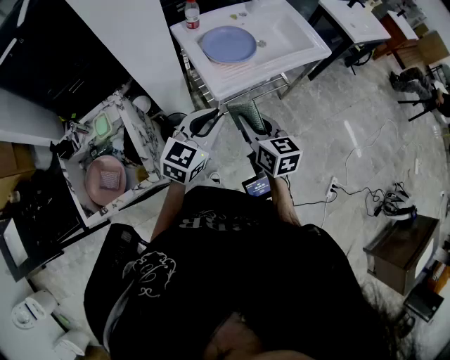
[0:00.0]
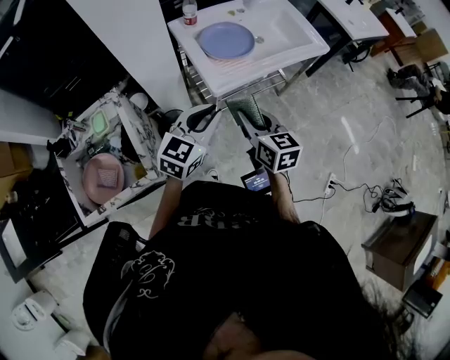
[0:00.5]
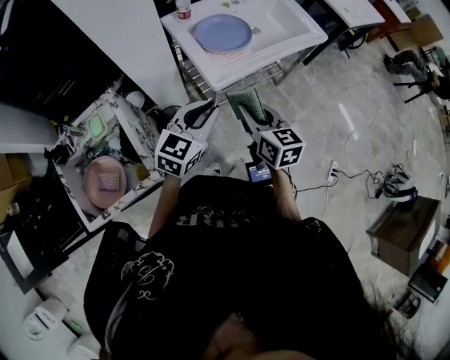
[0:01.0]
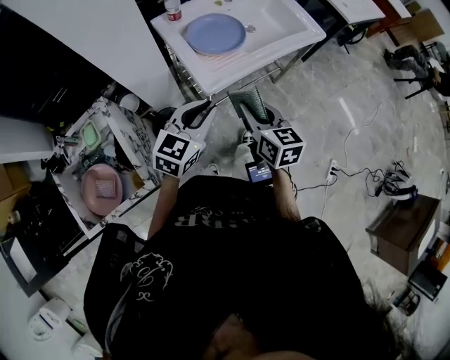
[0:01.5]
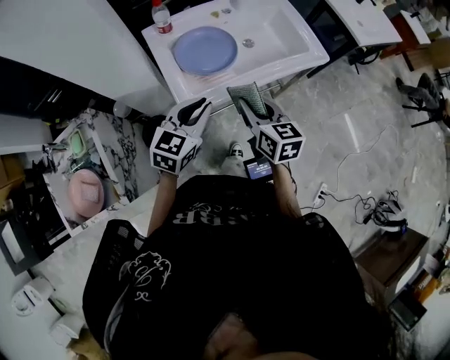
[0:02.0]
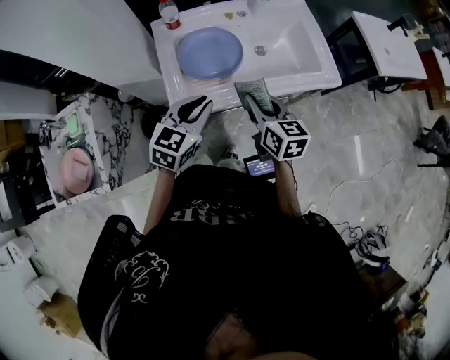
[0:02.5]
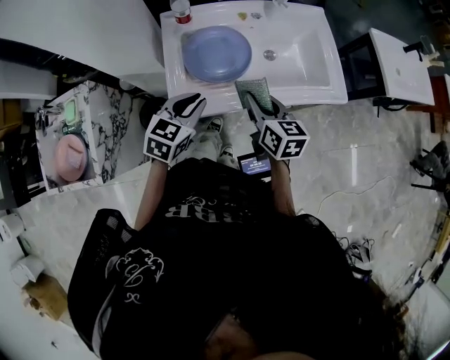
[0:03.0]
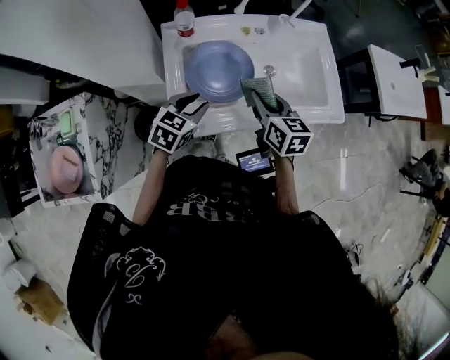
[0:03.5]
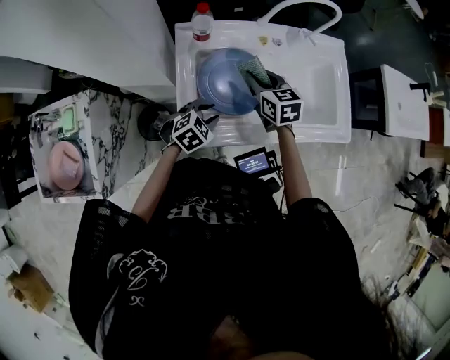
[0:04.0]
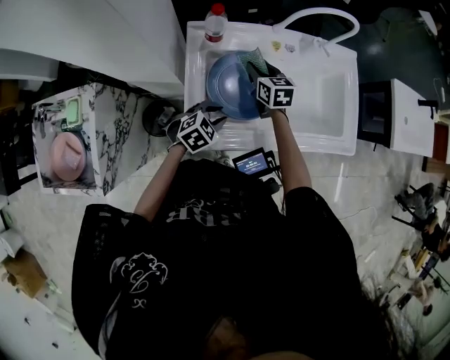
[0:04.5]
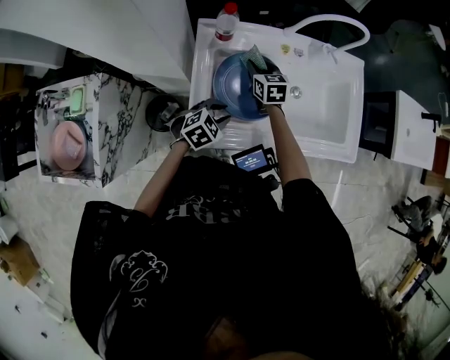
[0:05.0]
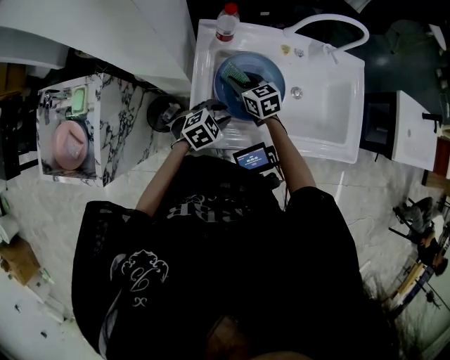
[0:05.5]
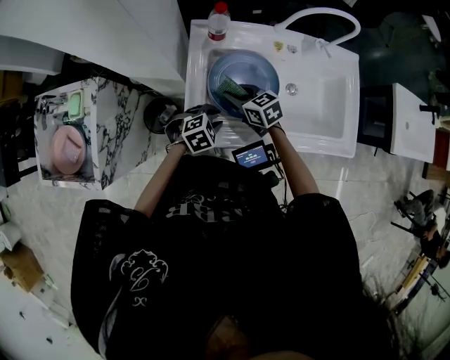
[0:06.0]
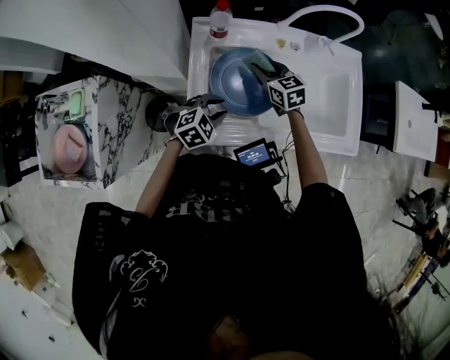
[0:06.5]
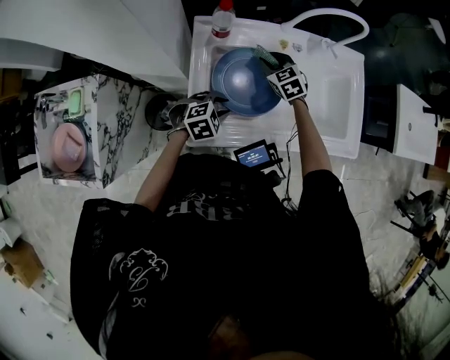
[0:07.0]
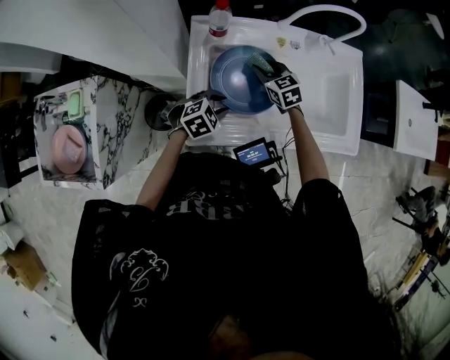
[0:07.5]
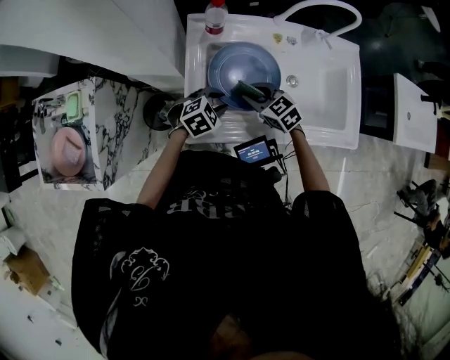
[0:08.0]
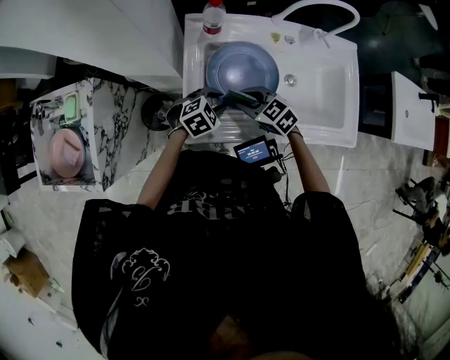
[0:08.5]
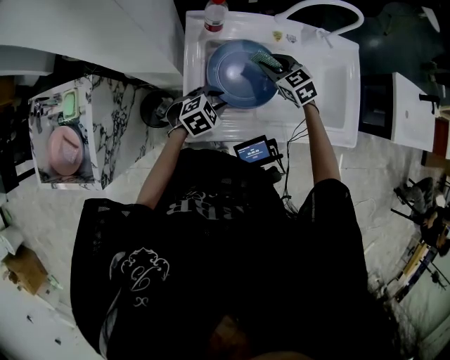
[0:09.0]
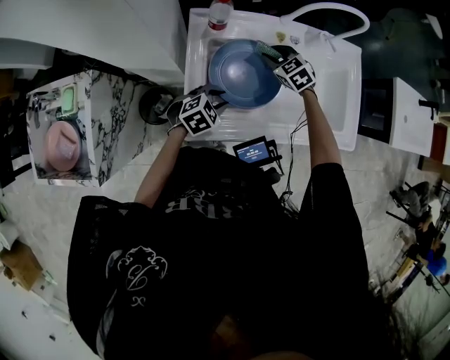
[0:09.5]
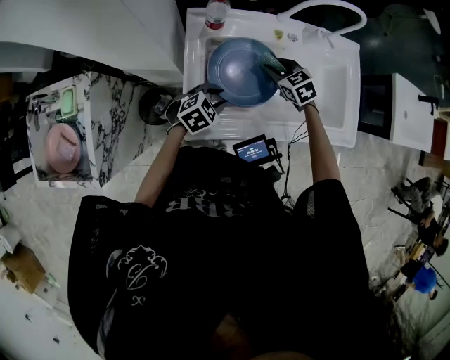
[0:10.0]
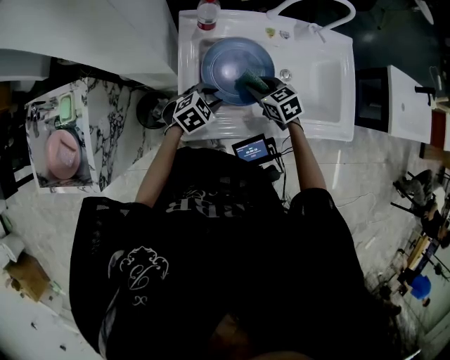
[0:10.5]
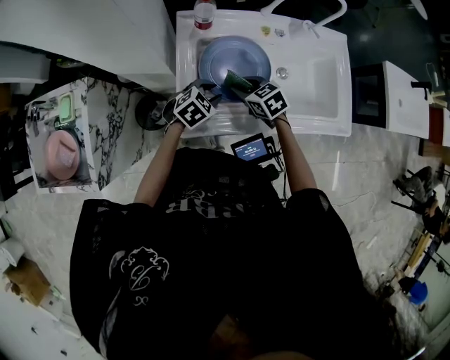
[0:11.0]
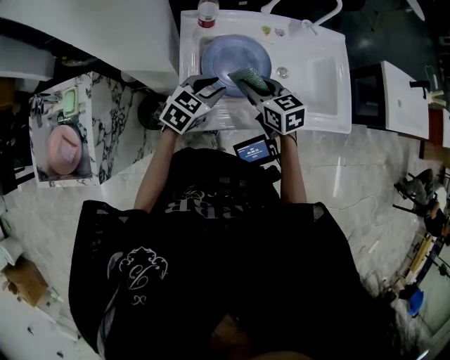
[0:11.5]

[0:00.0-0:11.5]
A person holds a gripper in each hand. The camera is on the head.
0:00.0 to 0:02.0: Both grippers move forward and to the right, about 20 cm.
0:02.0 to 0:04.0: The left gripper is displaced downward and forward by approximately 25 cm, and angles its fingers downward, by approximately 30 degrees. Meanwhile the right gripper heads forward, covering about 30 cm, and turns by roughly 30 degrees.
0:04.0 to 0:06.0: The right gripper shifts approximately 15 cm downward, to the left and backward, and changes its angle by approximately 30 degrees.
0:06.0 to 0:07.5: The right gripper heads forward and to the right, covering about 10 cm.
0:09.5 to 0:11.5: The right gripper is displaced backward and upward by roughly 20 cm, and changes its angle by some 30 degrees. The left gripper goes about 10 cm upward, and rotates roughly 20 degrees.

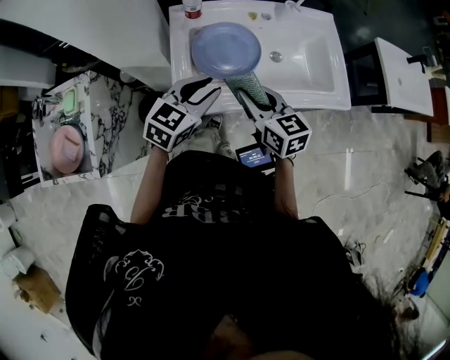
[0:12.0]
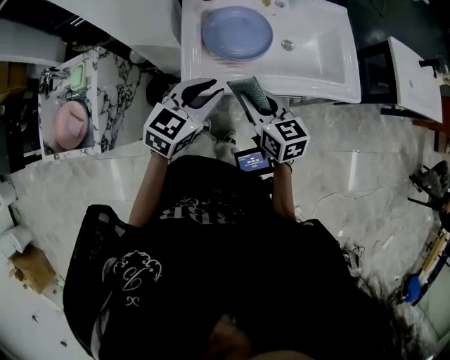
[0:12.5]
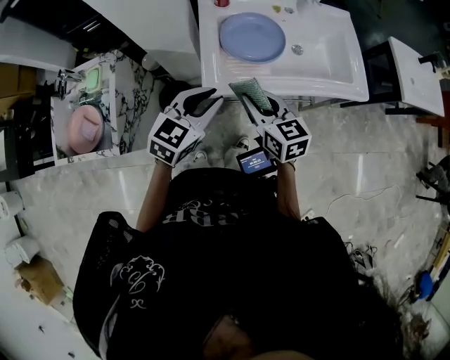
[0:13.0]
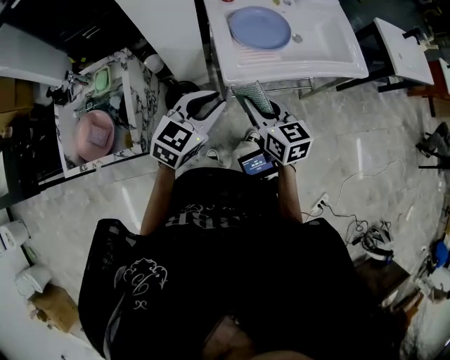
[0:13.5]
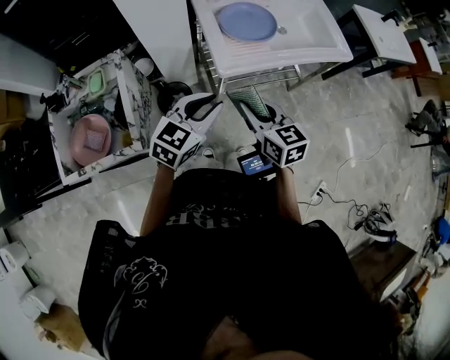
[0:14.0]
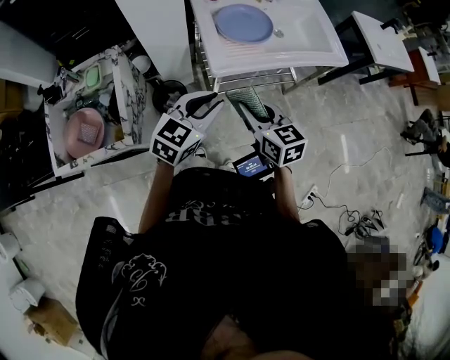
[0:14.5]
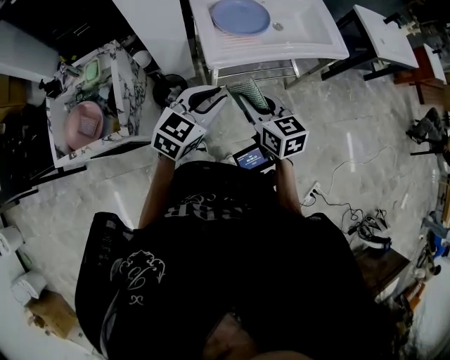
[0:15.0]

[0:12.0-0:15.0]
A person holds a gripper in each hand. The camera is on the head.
0:12.0 to 0:13.5: Both grippers move backward and to the left, some 25 cm.
0:13.5 to 0:15.0: The right gripper goes approximately 5 cm backward, while the left gripper goes roughly 10 cm backward and to the right.

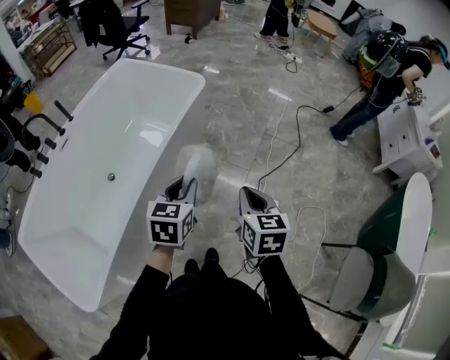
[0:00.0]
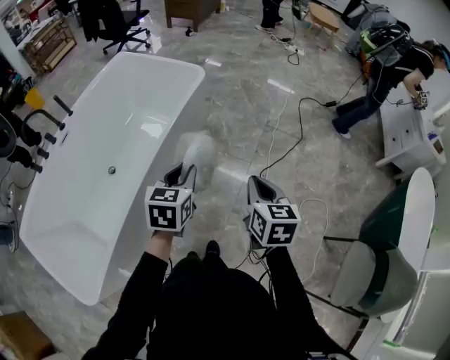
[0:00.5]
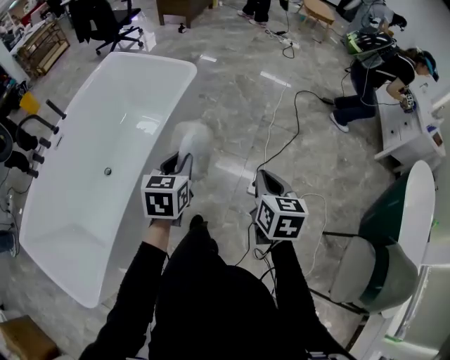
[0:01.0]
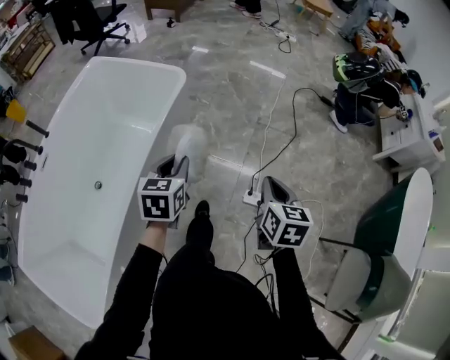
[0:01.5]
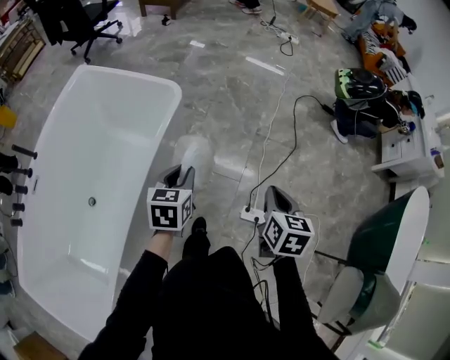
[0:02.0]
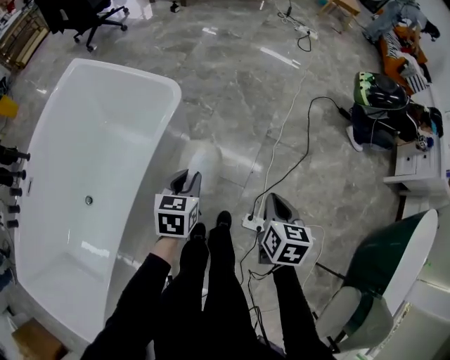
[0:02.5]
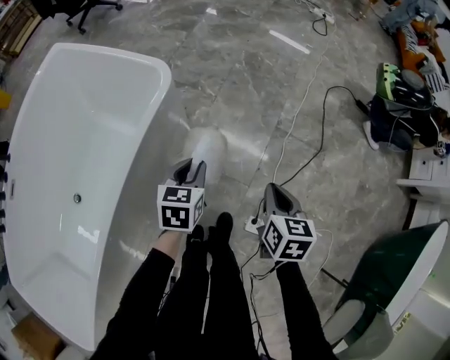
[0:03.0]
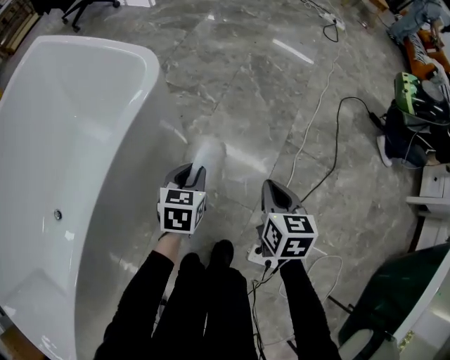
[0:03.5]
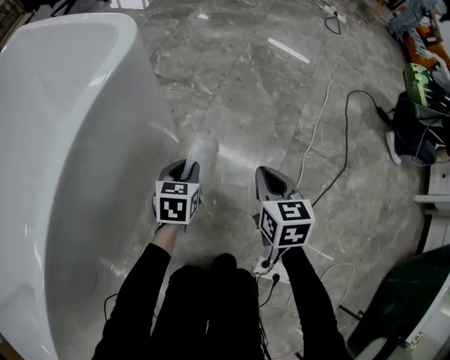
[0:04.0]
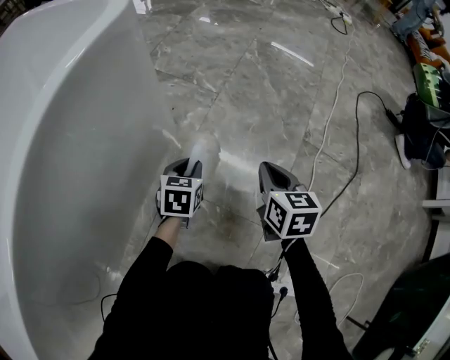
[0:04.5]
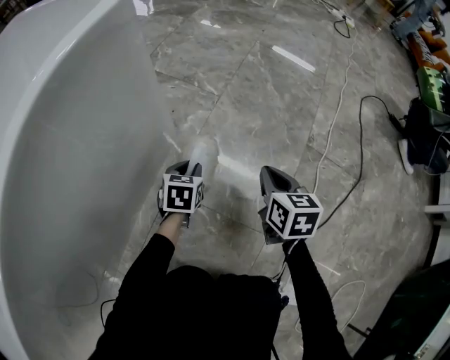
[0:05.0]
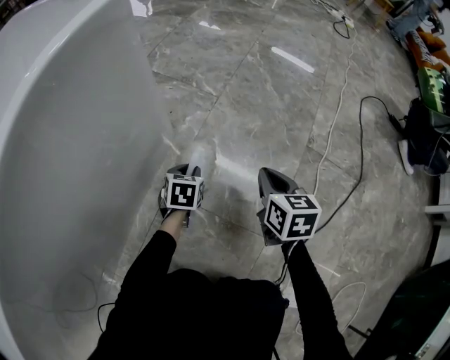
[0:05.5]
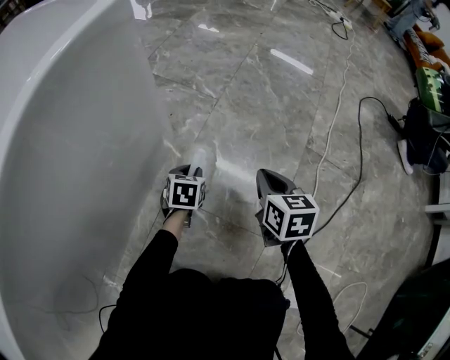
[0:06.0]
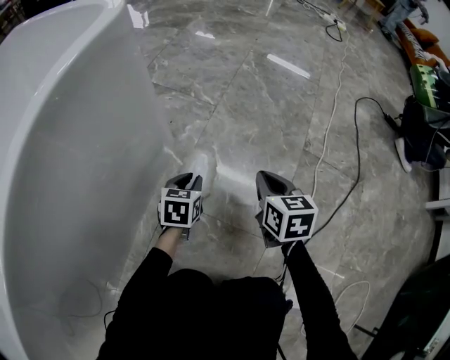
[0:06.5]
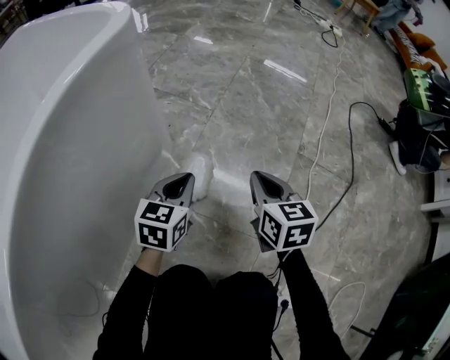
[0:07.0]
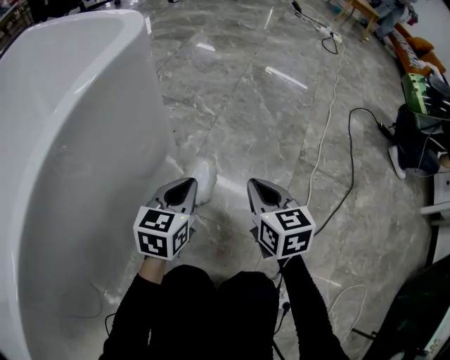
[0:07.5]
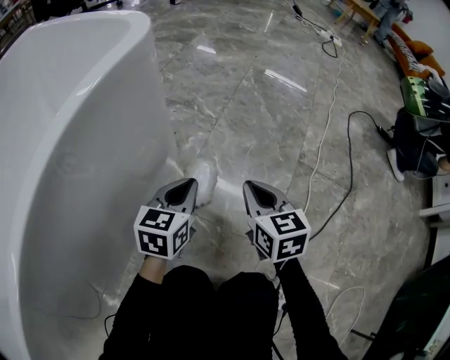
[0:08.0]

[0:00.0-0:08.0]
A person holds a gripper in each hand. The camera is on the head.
0:00.0 to 0:02.0: The left gripper goes some 30 cm forward; the right gripper goes about 30 cm forward and to the right.
0:02.0 to 0:04.0: The grippers both shift downward and forward by approximately 60 cm. The right gripper rotates about 20 degrees.
0:04.0 to 0:06.0: The right gripper is displaced downward by about 10 cm. Meanwhile the left gripper heads downward, covering approximately 20 cm.
0:06.0 to 0:08.0: The left gripper shifts approximately 20 cm upward, and turns by about 30 degrees; the right gripper goes roughly 10 cm upward and to the left.

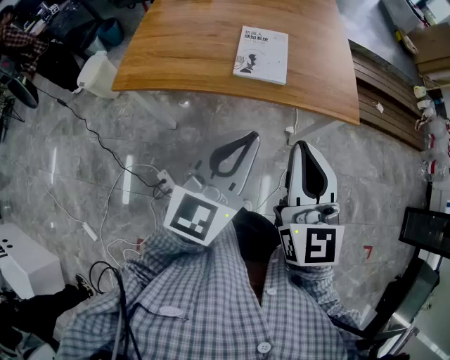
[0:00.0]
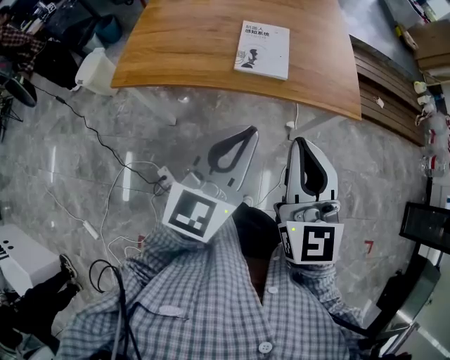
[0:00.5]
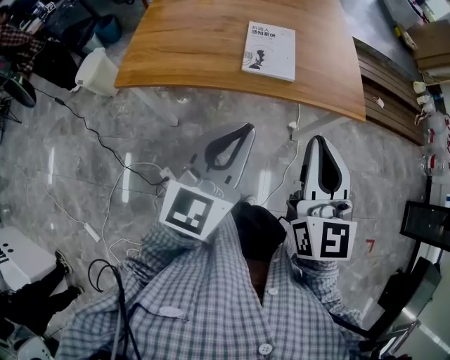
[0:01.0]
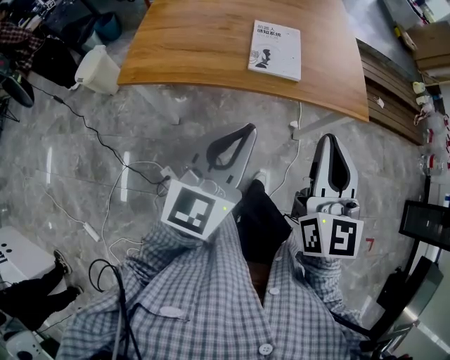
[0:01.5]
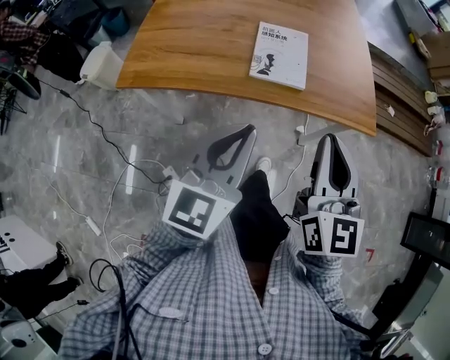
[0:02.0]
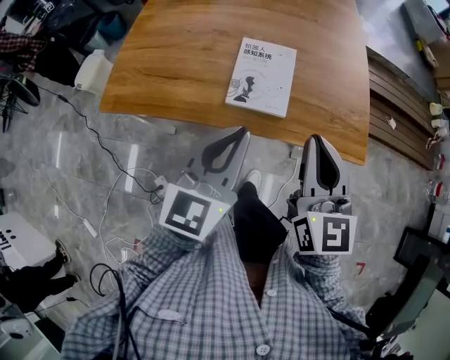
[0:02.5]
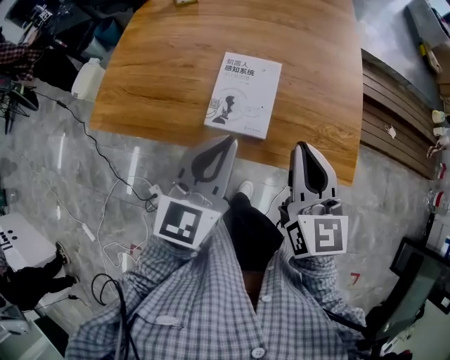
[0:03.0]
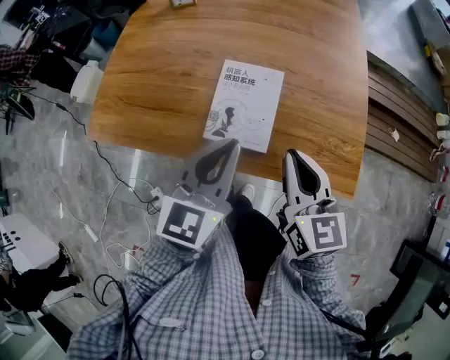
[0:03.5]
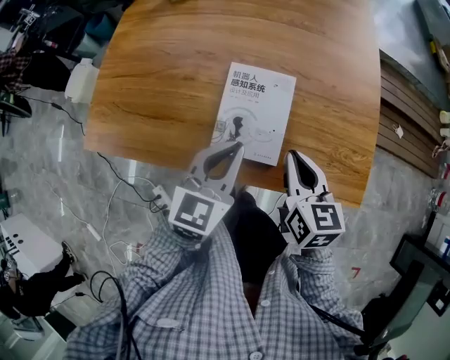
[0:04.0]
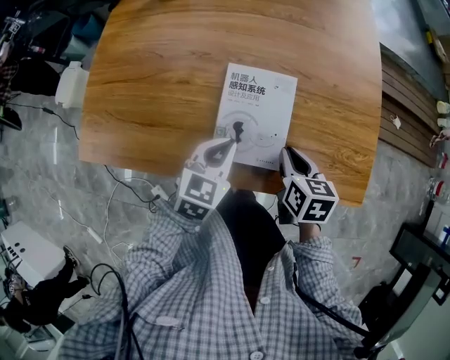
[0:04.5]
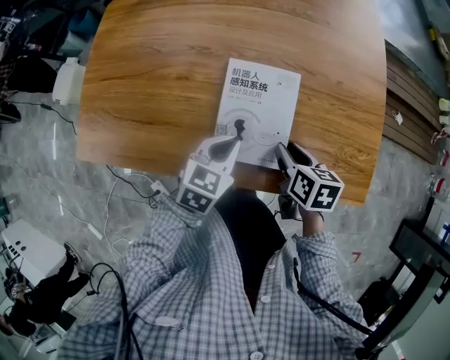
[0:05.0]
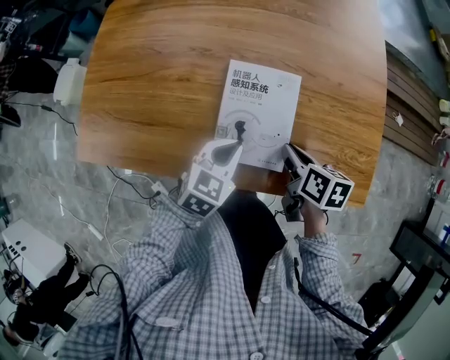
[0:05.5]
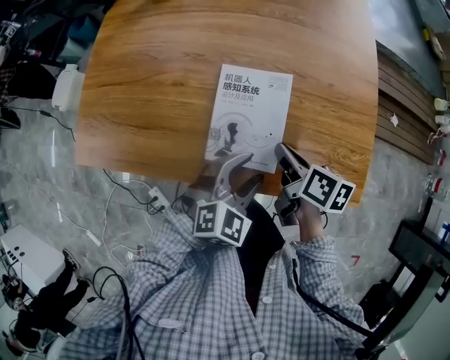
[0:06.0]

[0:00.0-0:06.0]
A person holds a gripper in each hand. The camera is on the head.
0:00.0 to 0:02.0: The left gripper shifts some 10 cm to the left and forward, while the right gripper goes approximately 5 cm forward.
0:02.0 to 0:04.0: Both grippers move forward and downward, about 30 cm. The right gripper rotates approximately 30 degrees.
0:04.0 to 0:06.0: The left gripper goes roughly 10 cm downward and to the right, rotates roughly 40 degrees, and opens up; the right gripper moves downward, roughly 5 cm, rotates approximately 40 degrees, and opens, then closes once more.
